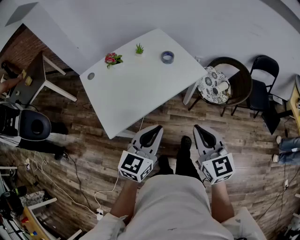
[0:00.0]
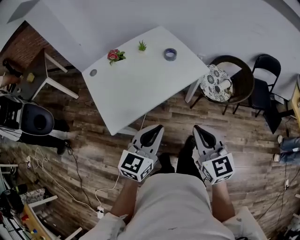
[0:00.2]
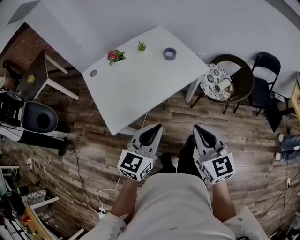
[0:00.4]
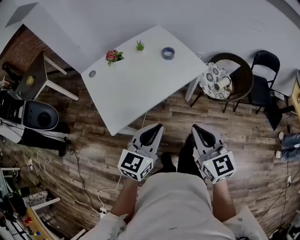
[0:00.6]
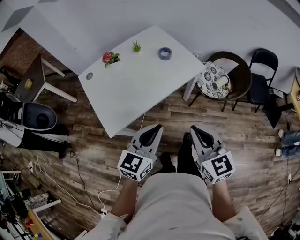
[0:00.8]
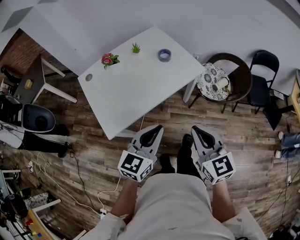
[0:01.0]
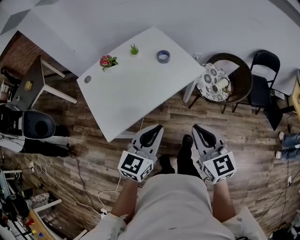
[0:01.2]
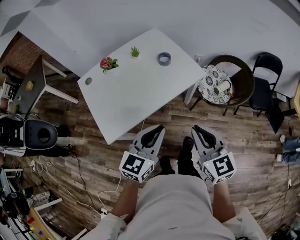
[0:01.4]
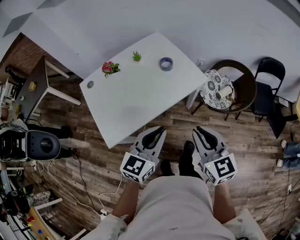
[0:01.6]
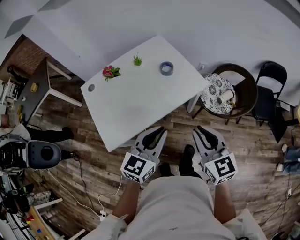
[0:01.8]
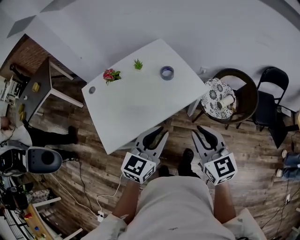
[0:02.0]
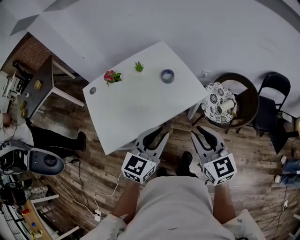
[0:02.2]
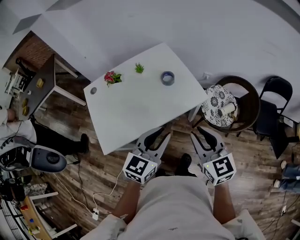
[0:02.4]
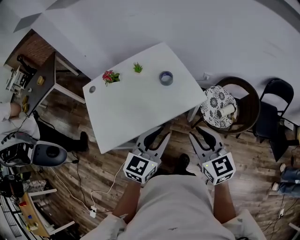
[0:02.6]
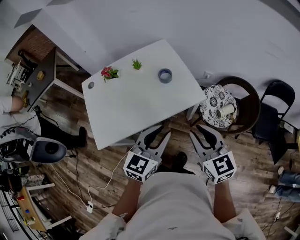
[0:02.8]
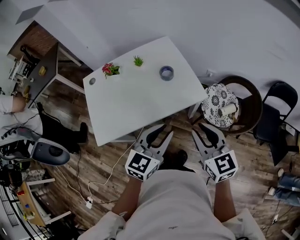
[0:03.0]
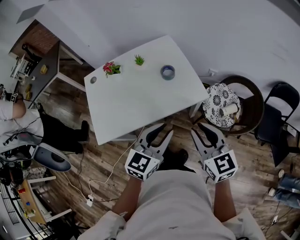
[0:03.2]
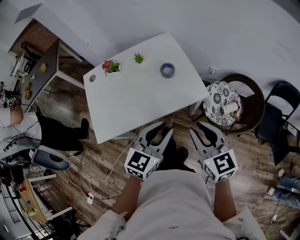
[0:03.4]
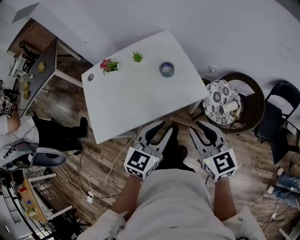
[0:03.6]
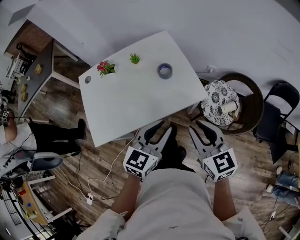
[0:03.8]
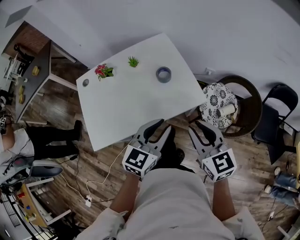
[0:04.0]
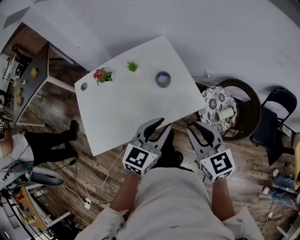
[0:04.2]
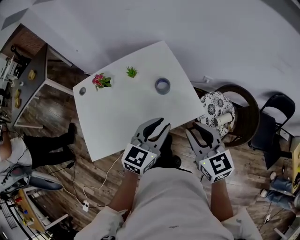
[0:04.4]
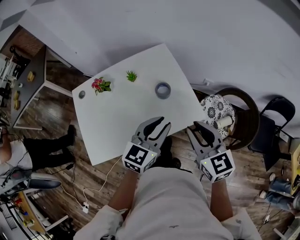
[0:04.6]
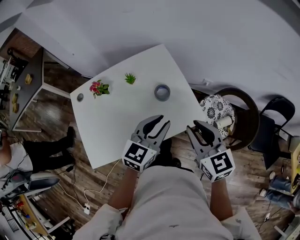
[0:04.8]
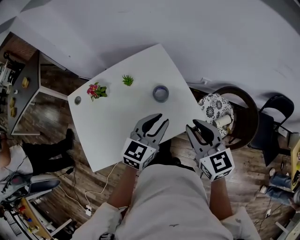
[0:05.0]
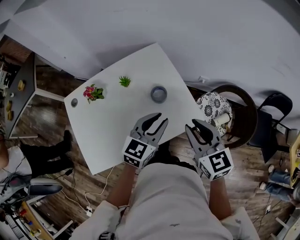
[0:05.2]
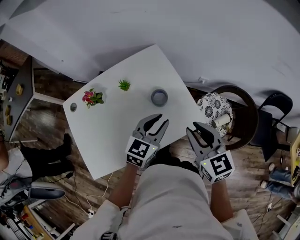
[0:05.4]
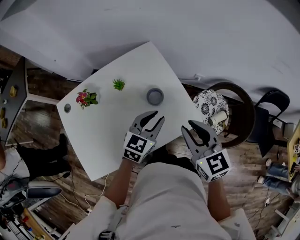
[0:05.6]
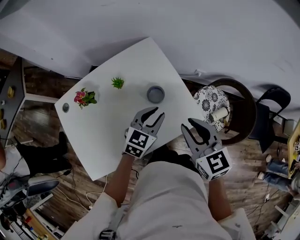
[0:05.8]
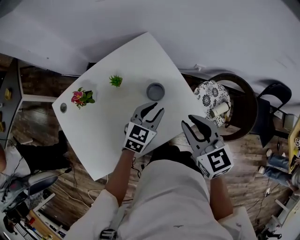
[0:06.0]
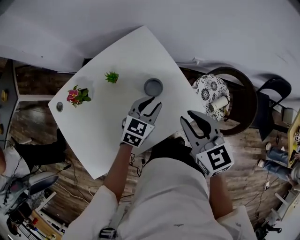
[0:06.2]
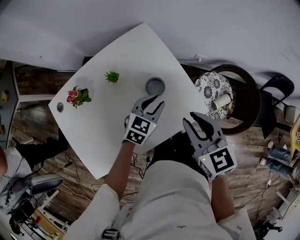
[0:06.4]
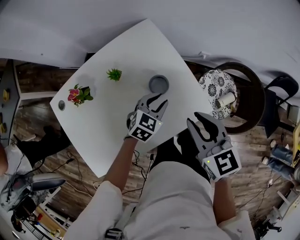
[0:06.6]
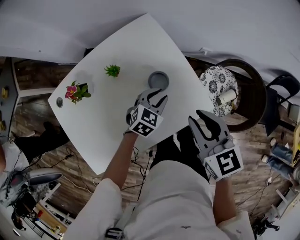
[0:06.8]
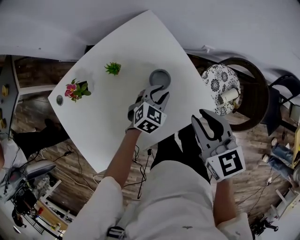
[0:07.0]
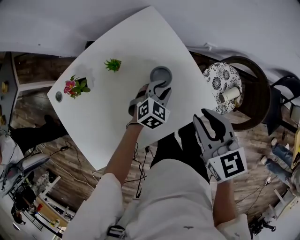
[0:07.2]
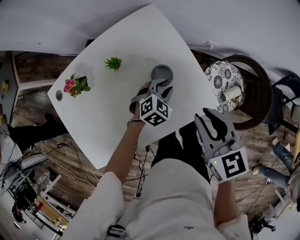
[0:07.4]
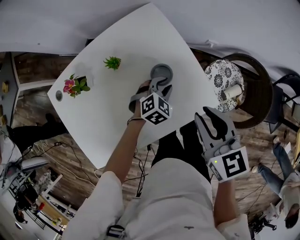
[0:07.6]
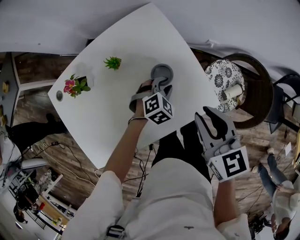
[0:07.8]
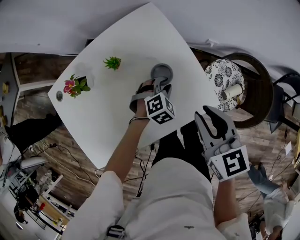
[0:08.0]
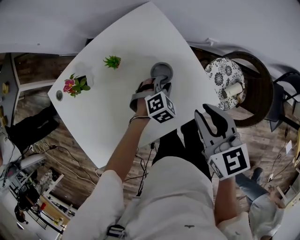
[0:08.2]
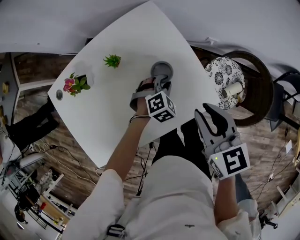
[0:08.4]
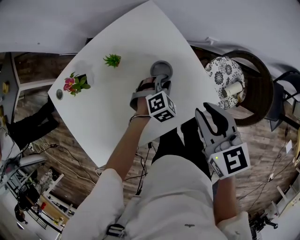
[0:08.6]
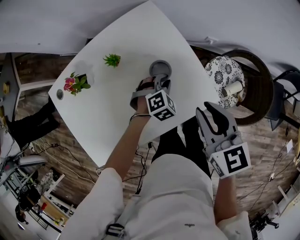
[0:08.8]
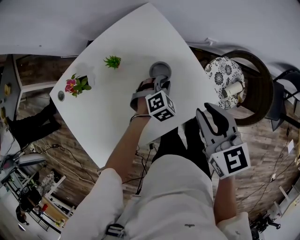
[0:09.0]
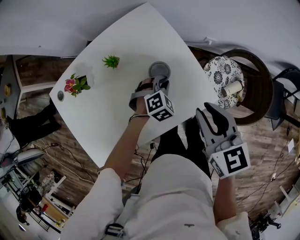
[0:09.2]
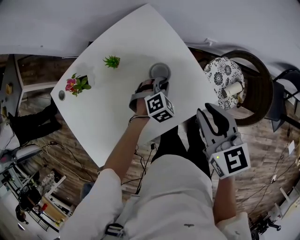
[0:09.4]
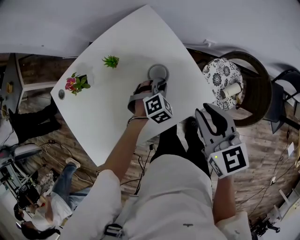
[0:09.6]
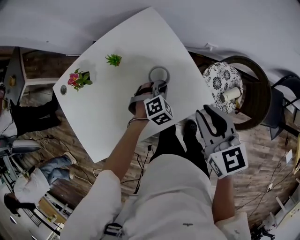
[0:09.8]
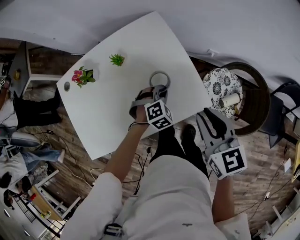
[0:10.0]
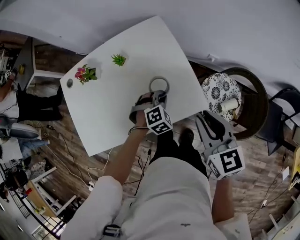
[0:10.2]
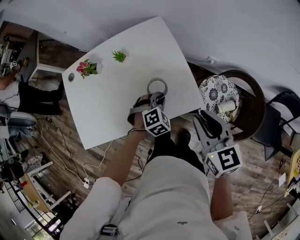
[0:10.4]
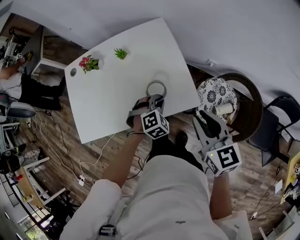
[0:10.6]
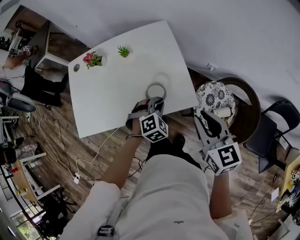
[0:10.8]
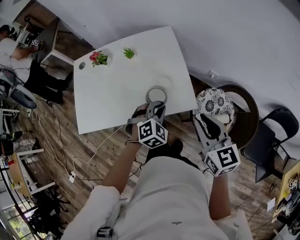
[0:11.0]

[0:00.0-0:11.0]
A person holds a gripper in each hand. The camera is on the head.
0:00.0 to 0:01.6: Both grippers move forward, some 5 cm.
0:01.6 to 0:03.2: The right gripper travels forward and to the right by approximately 15 cm, while the left gripper shifts some 15 cm to the right and forward, and opens its fingers.
0:03.2 to 0:04.8: The grippers both shift forward by some 20 cm.
0:04.8 to 0:06.2: The right gripper moves forward, approximately 5 cm. Meanwhile the left gripper shifts some 20 cm downward and forward.
0:06.2 to 0:07.8: The left gripper heads downward, covering roughly 10 cm, and rotates approximately 40 degrees.
0:07.8 to 0:09.4: The grippers move only a little.
0:09.4 to 0:11.0: The right gripper goes roughly 15 cm backward and to the right, while the left gripper goes about 20 cm backward and upward, and turns by about 20 degrees.

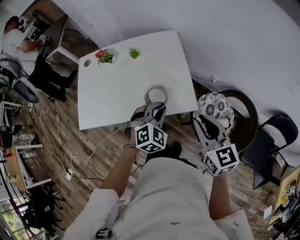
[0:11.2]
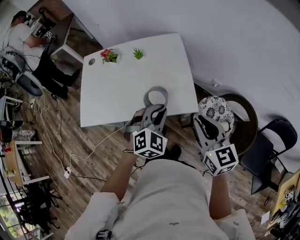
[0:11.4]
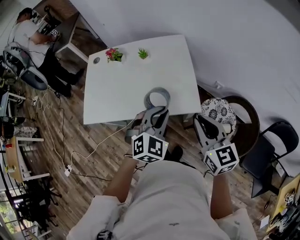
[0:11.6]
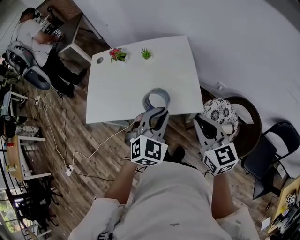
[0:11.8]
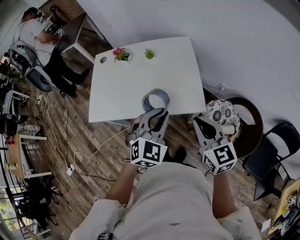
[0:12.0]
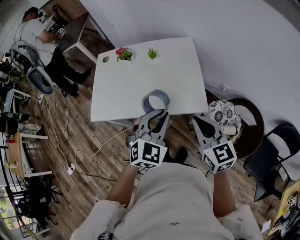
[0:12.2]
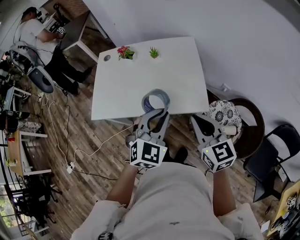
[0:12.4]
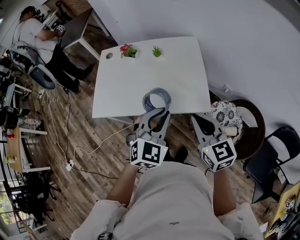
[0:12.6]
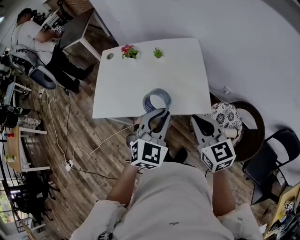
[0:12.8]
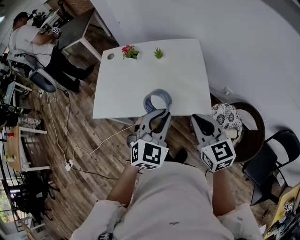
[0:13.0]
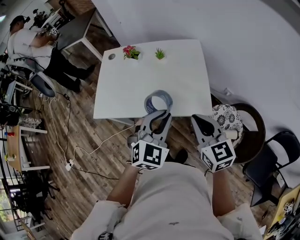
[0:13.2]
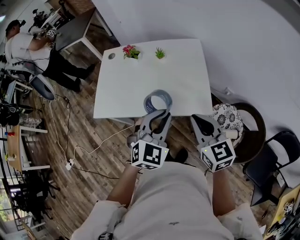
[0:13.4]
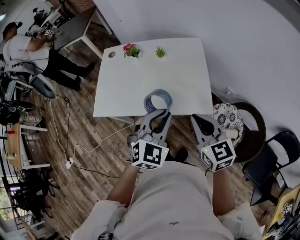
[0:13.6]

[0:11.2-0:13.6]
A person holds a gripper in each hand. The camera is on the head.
0:11.2 to 0:12.4: The left gripper shifts about 15 cm upward, backward and to the left, and changes its angle by some 20 degrees, while the right gripper shifts some 10 cm to the left.
0:12.4 to 0:13.6: The grippers move only a little.

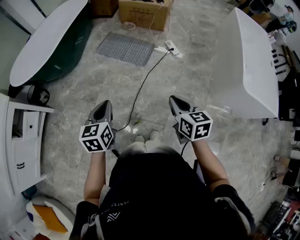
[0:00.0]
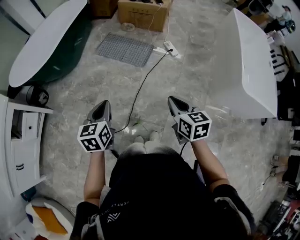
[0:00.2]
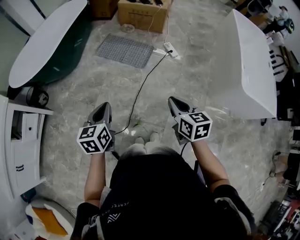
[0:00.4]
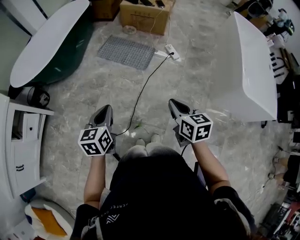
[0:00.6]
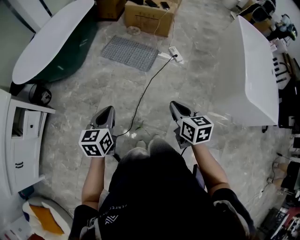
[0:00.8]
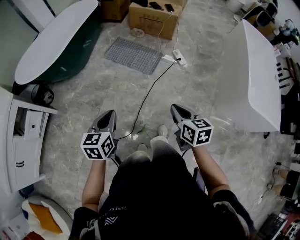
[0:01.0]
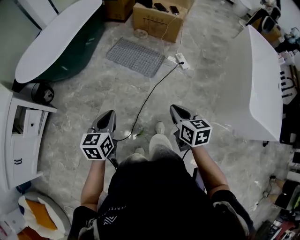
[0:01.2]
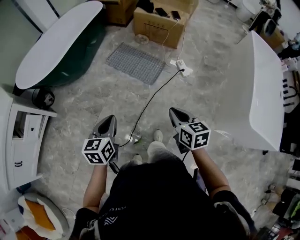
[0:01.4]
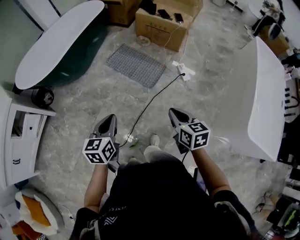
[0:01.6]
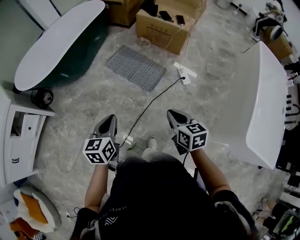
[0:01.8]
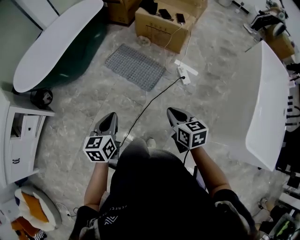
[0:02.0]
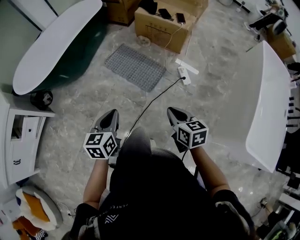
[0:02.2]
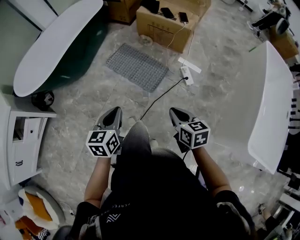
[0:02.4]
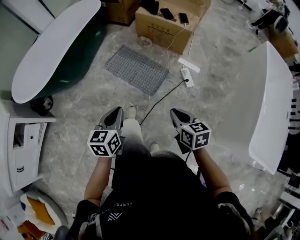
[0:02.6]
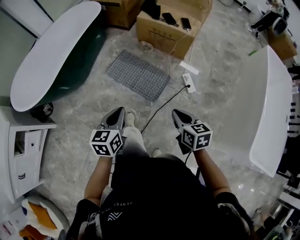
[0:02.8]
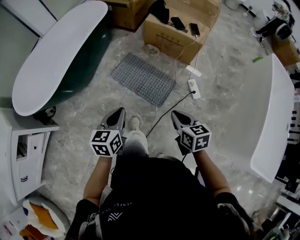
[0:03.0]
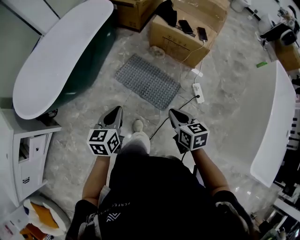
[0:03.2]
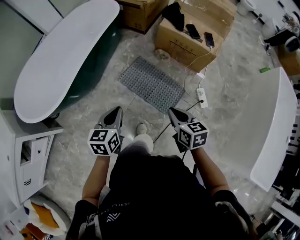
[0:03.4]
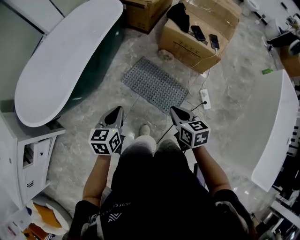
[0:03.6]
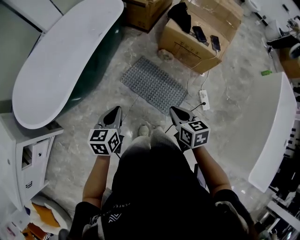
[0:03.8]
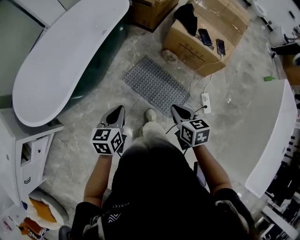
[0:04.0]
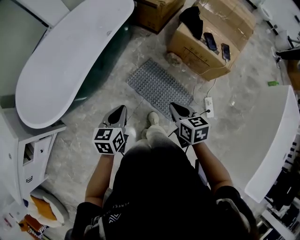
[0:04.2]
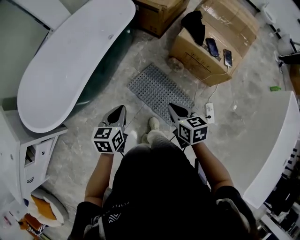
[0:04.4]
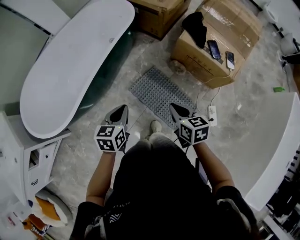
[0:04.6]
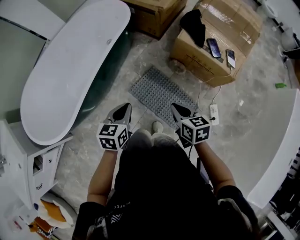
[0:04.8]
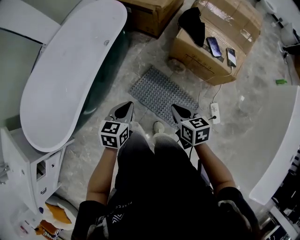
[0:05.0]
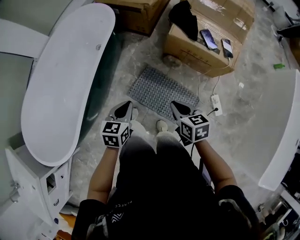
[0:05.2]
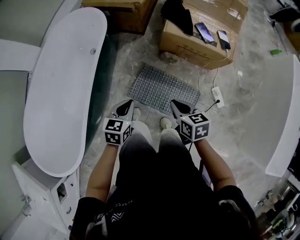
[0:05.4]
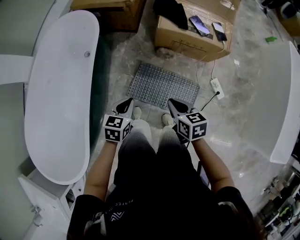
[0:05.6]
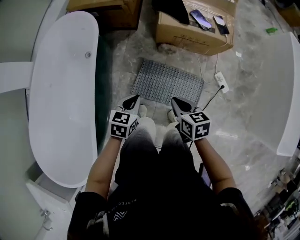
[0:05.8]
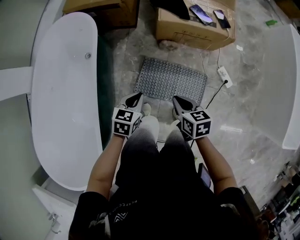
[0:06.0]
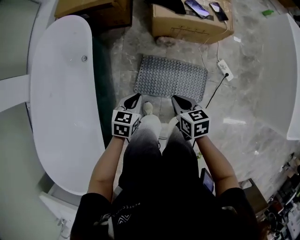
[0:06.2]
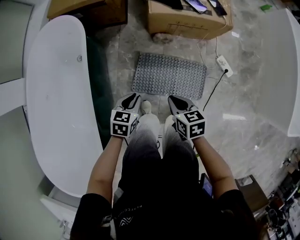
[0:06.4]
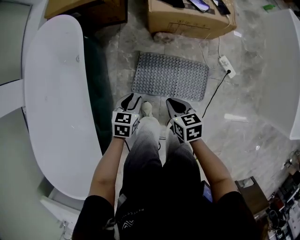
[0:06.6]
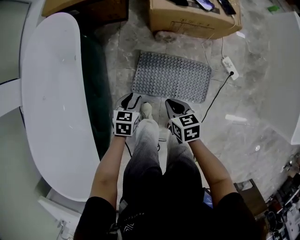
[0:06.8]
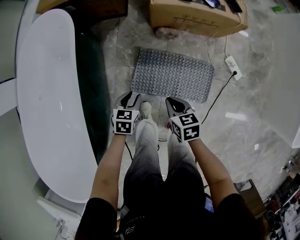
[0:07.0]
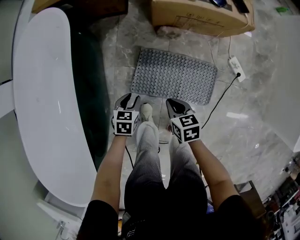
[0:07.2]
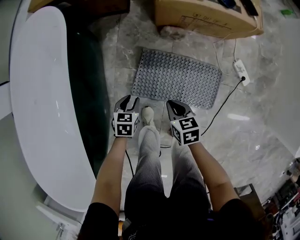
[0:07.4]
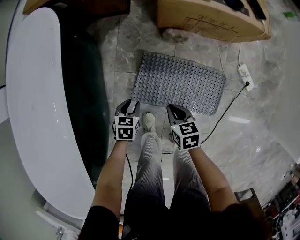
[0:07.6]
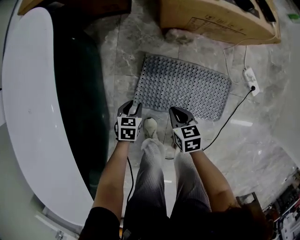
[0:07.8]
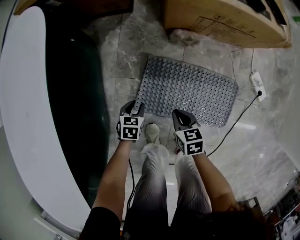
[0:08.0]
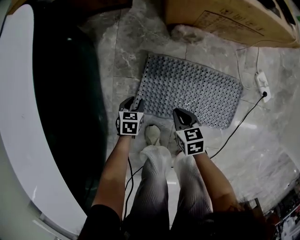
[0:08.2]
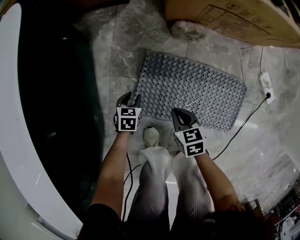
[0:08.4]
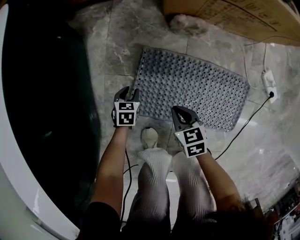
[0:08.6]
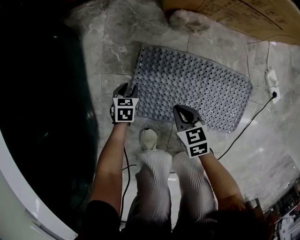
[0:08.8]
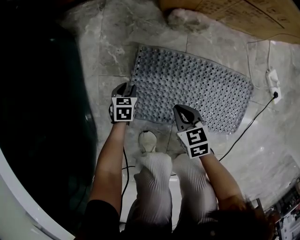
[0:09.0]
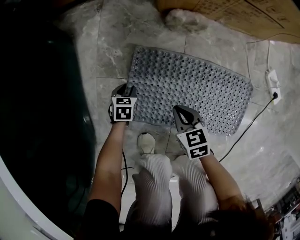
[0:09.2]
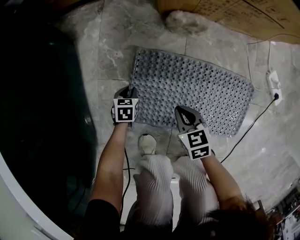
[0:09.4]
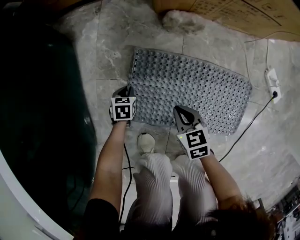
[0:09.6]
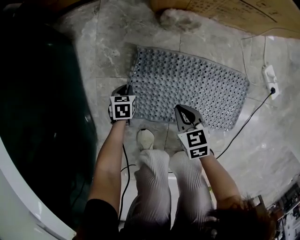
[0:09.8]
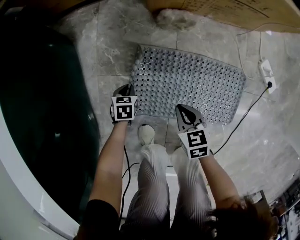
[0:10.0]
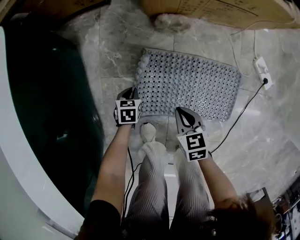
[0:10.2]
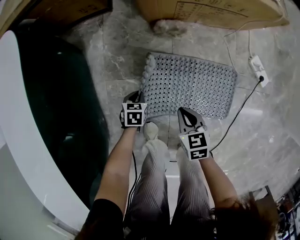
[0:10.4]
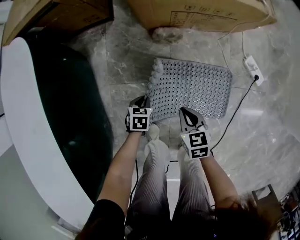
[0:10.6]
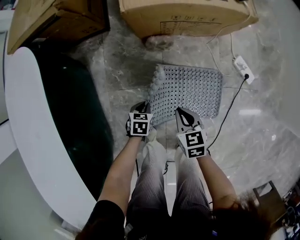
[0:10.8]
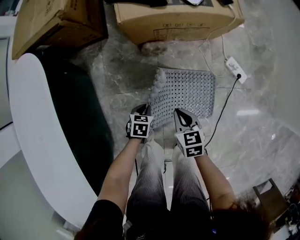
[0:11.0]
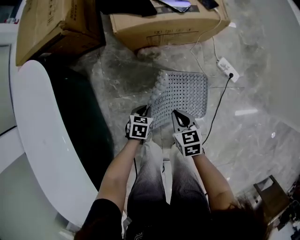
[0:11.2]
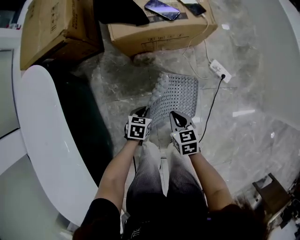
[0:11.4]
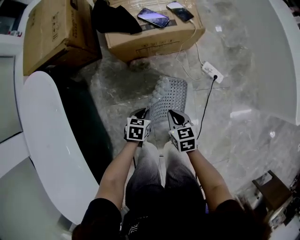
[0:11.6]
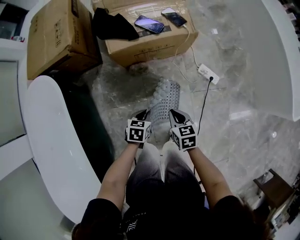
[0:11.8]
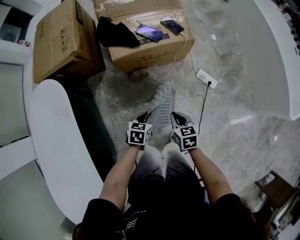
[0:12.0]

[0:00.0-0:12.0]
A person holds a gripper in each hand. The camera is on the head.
0:00.0 to 0:01.6: The left gripper moves forward and to the right, about 15 cm; the right gripper is displaced forward by approximately 20 cm.
0:01.6 to 0:03.0: The grippers both shift forward by about 25 cm.
0:03.0 to 0:04.4: The grippers both shift forward and to the left by about 30 cm.
0:04.4 to 0:06.0: The right gripper shifts by roughly 15 cm, and turns by roughly 30 degrees; the left gripper shifts by about 25 cm, and turns by about 50 degrees.
0:06.0 to 0:07.6: The grippers both shift downward by approximately 30 cm. The left gripper opens.
0:07.6 to 0:09.0: The two grippers go about 25 cm downward.
0:09.0 to 0:10.4: The right gripper goes some 15 cm upward. The left gripper travels upward and to the right by approximately 15 cm, and closes up.
0:10.4 to 0:12.0: The two grippers go approximately 40 cm upward and to the right. The left gripper turns by approximately 20 degrees.
